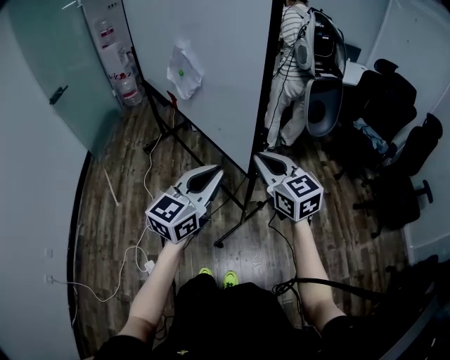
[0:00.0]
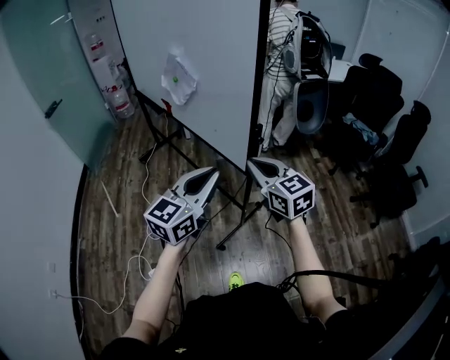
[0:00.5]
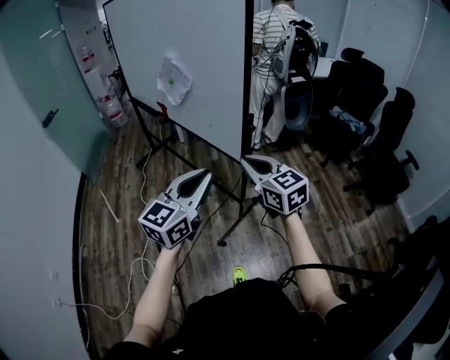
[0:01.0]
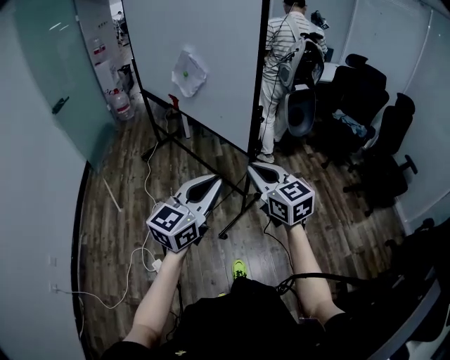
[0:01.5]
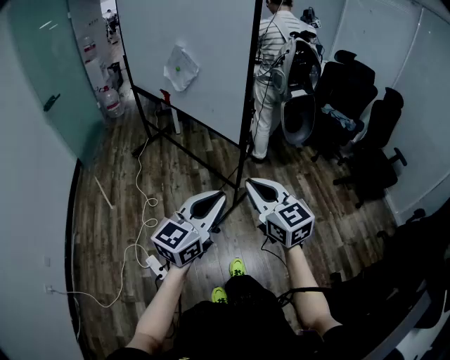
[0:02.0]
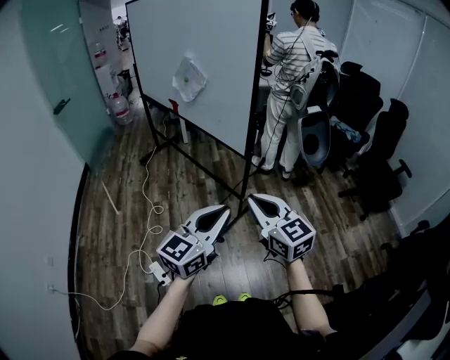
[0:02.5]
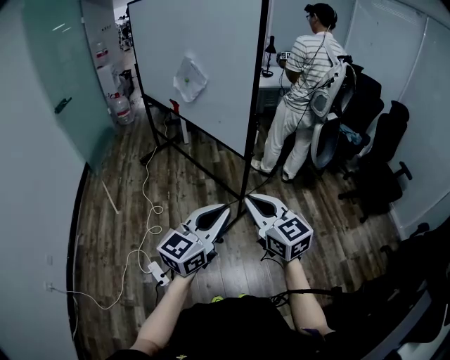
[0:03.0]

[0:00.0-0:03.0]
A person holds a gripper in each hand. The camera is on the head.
0:00.0 to 0:01.5: Both grippers travel together backward, some 20 cm.
0:01.5 to 0:03.0: Both grippers move backward, some 10 cm.

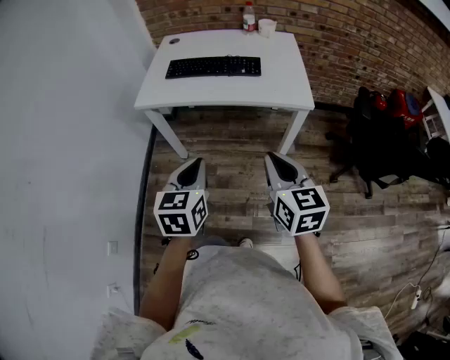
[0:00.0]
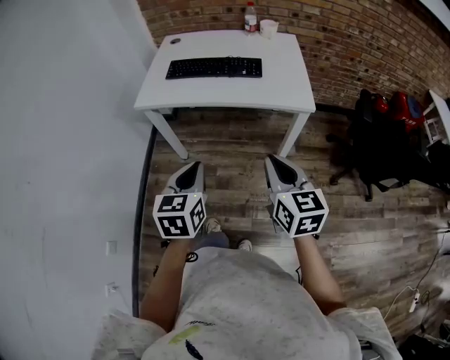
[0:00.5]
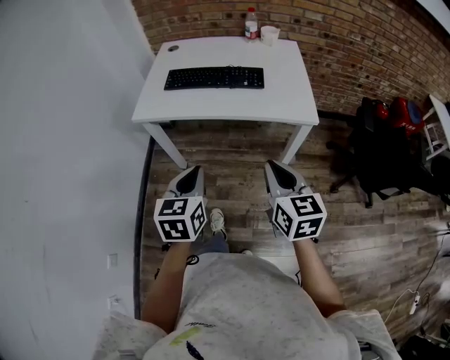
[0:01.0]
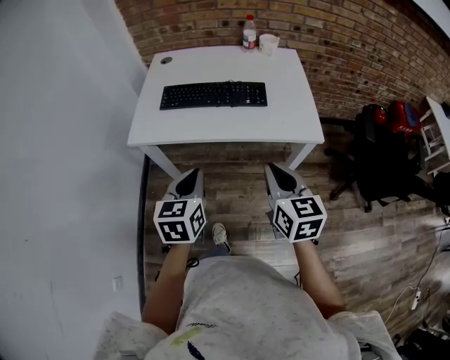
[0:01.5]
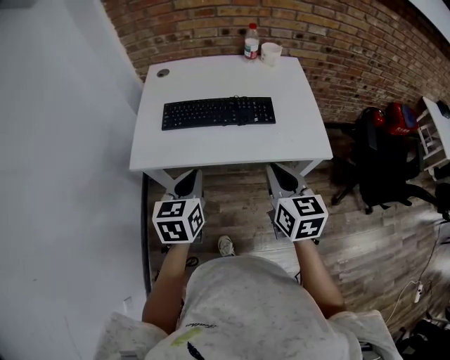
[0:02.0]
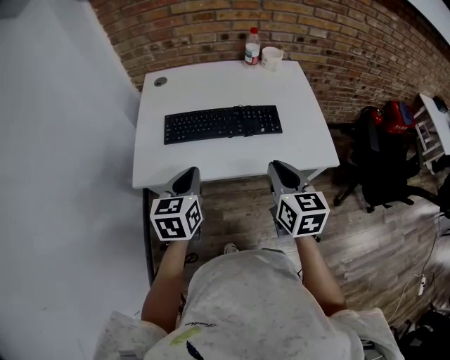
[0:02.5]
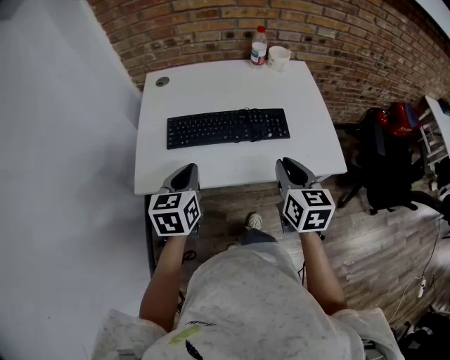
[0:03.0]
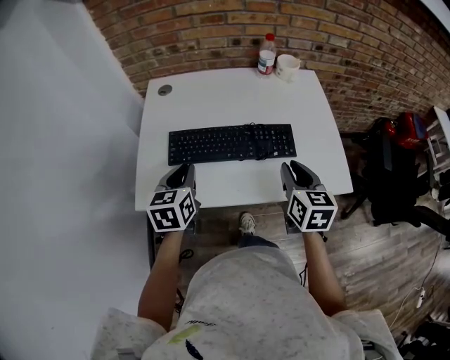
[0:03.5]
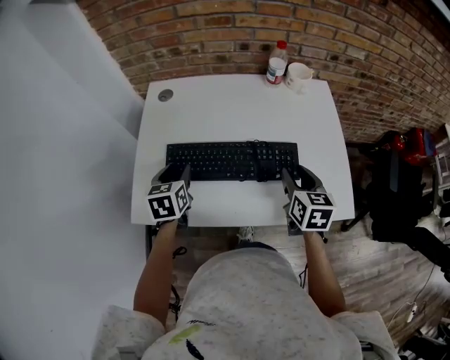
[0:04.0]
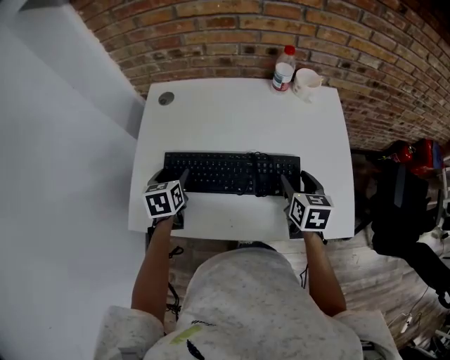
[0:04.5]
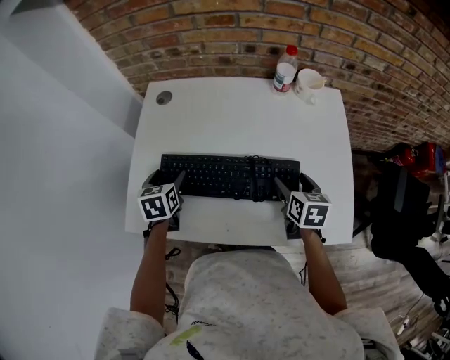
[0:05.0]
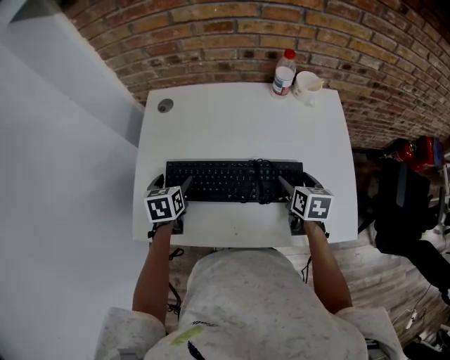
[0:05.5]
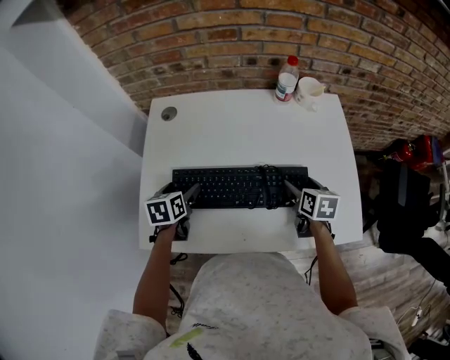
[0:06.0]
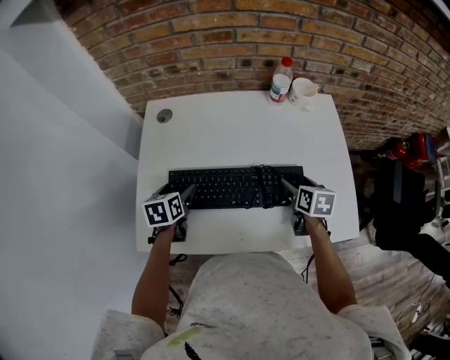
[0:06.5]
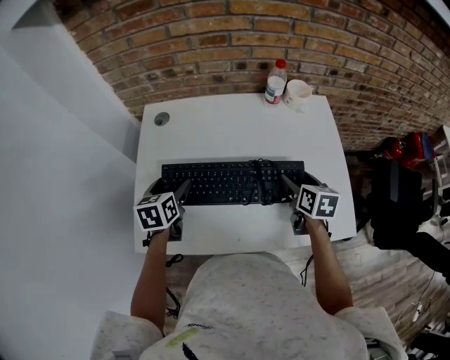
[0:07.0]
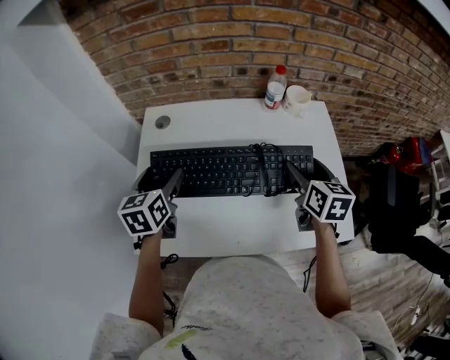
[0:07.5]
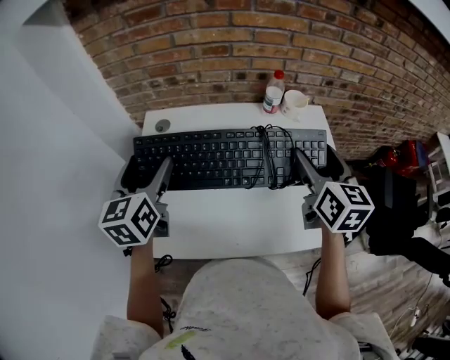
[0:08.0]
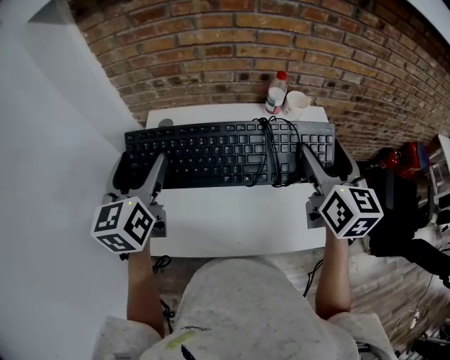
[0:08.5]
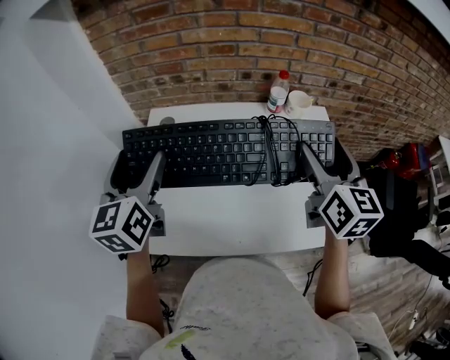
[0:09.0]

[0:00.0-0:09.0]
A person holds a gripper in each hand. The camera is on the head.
0:00.0 to 0:02.0: Both grippers travel together forward, approximately 25 cm.
0:02.0 to 0:04.5: The grippers both shift forward and downward by roughly 35 cm. The right gripper opens its fingers; the left gripper changes its angle by some 20 degrees, and opens its fingers.
0:04.5 to 0:07.0: The grippers make only small movements.
0:07.0 to 0:09.0: Both grippers move upward, roughly 25 cm. The left gripper tips its fingers upward by roughly 30 degrees. The right gripper tilts its fingers approximately 30 degrees upward.

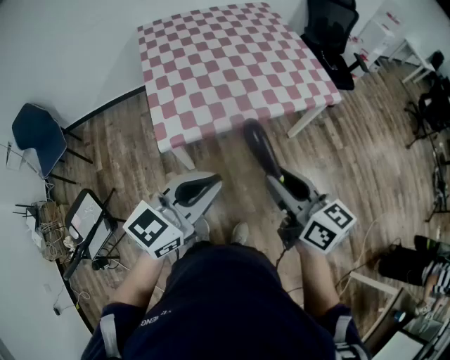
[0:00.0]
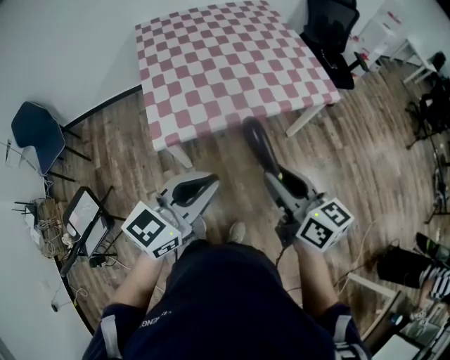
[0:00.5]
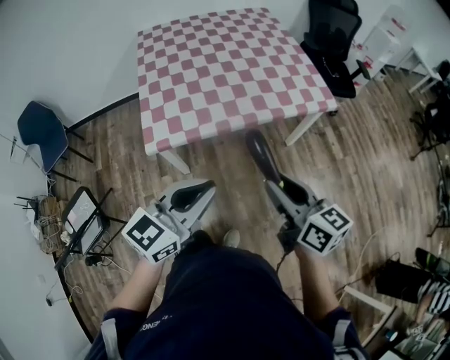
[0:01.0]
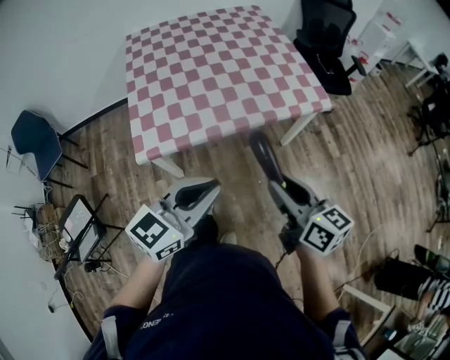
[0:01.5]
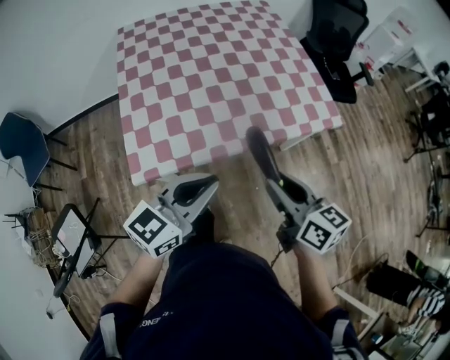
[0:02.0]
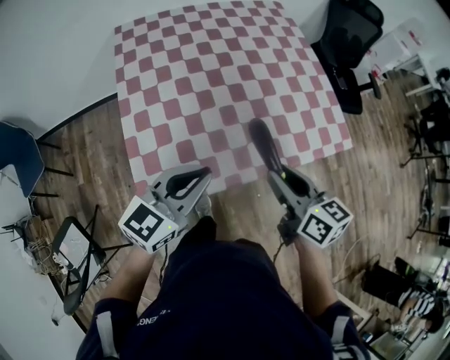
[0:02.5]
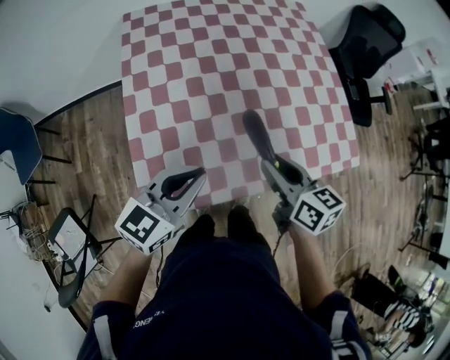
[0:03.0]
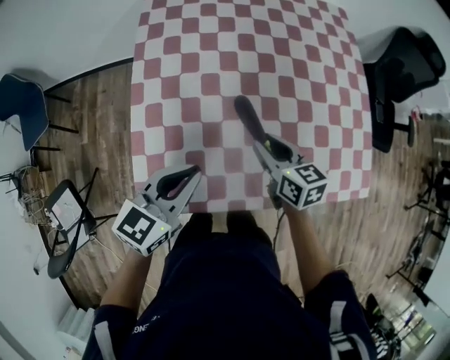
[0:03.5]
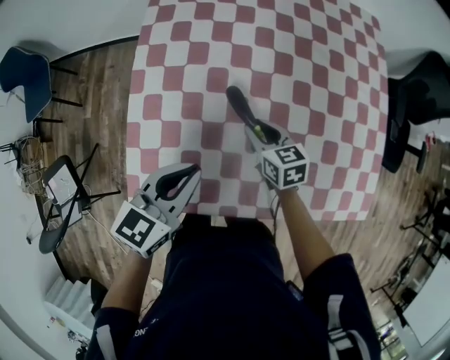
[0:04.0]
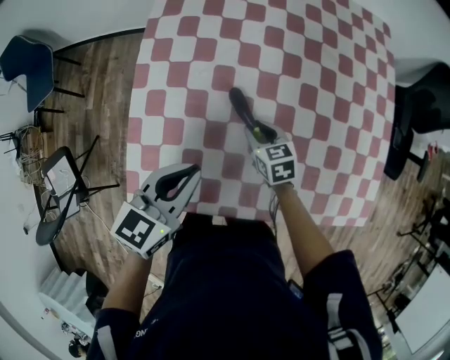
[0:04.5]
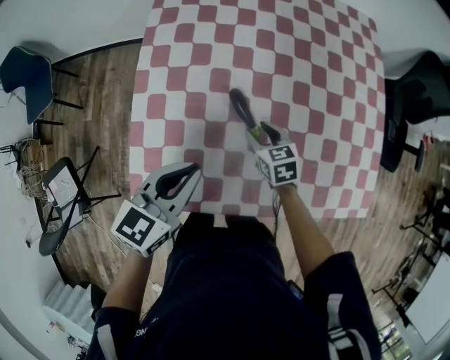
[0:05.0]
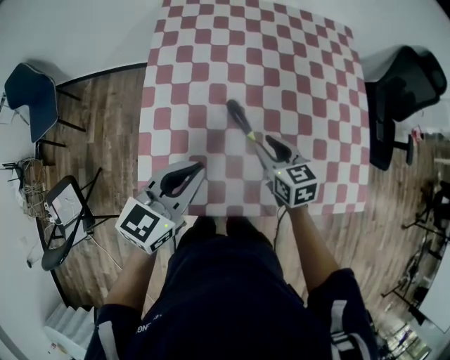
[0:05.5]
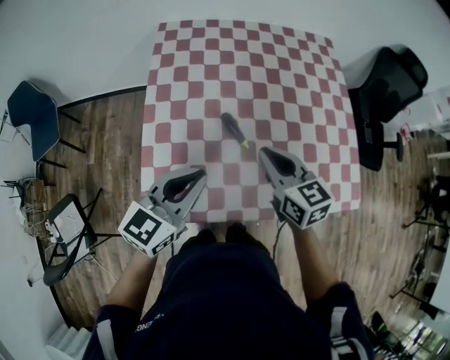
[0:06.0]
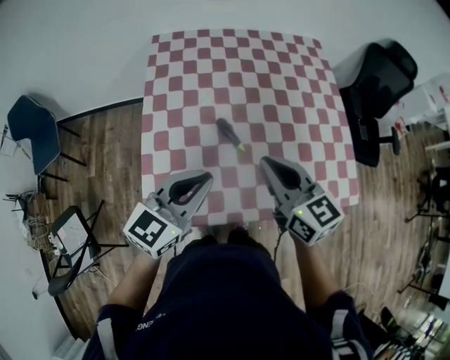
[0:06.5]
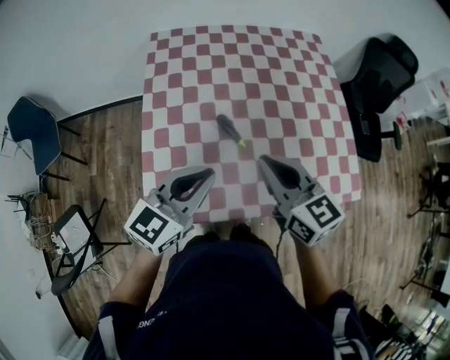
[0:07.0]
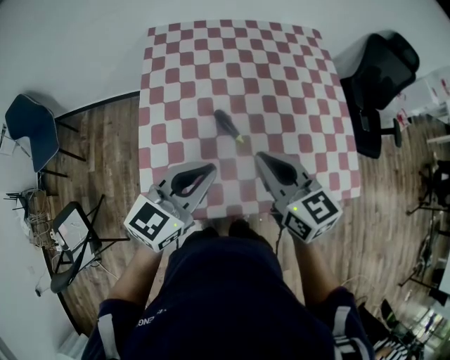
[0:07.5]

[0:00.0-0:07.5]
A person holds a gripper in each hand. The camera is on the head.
0:00.0 to 0:02.0: Both grippers travel together forward, roughly 20 cm.
0:02.0 to 0:04.0: The right gripper moves forward and downward, some 50 cm, and changes its angle by roughly 40 degrees; the left gripper heads forward and to the left, covering approximately 30 cm, and turns by approximately 30 degrees.
0:04.0 to 0:05.5: The right gripper is displaced upward and backward by approximately 10 cm, while the left gripper is displaced upward by some 5 cm.
0:05.5 to 0:07.5: The right gripper moves upward and backward, about 20 cm, and closes. The left gripper heads upward, covering roughly 5 cm.

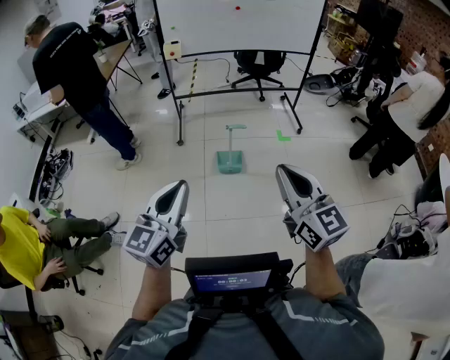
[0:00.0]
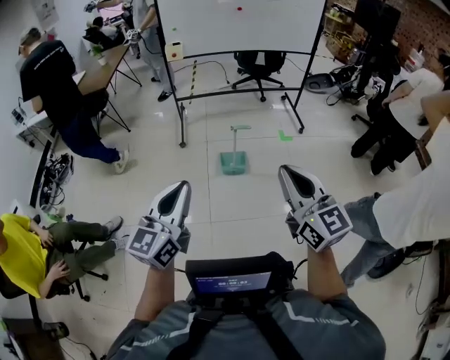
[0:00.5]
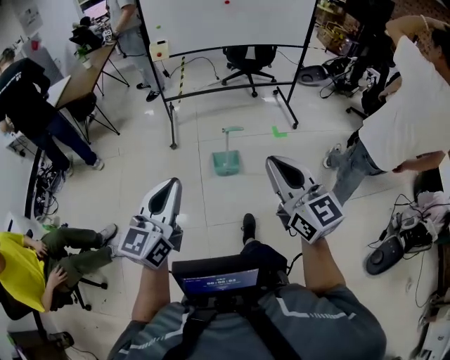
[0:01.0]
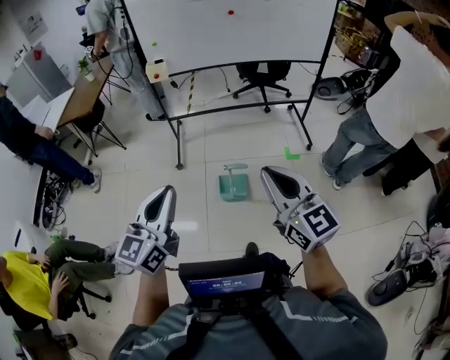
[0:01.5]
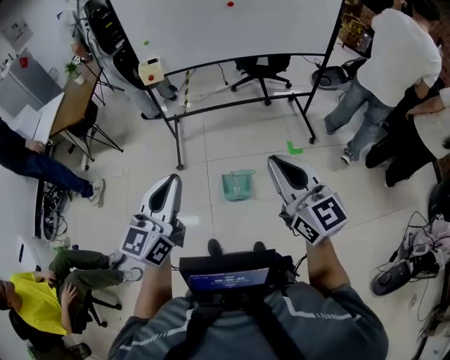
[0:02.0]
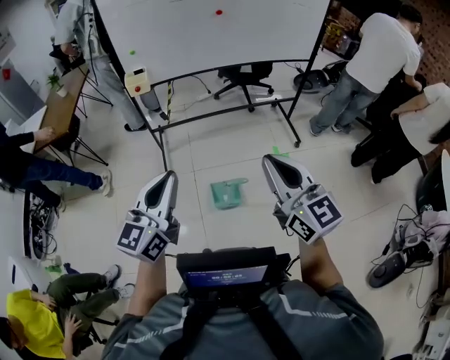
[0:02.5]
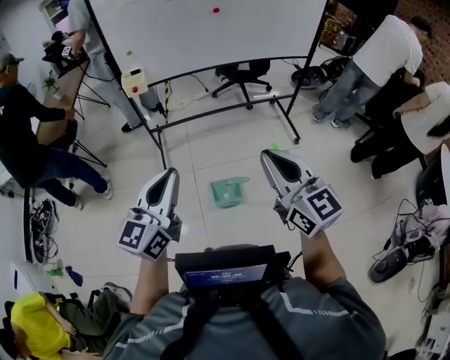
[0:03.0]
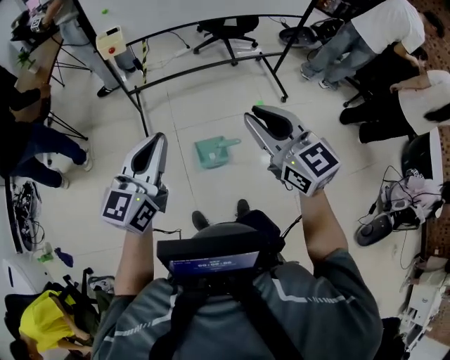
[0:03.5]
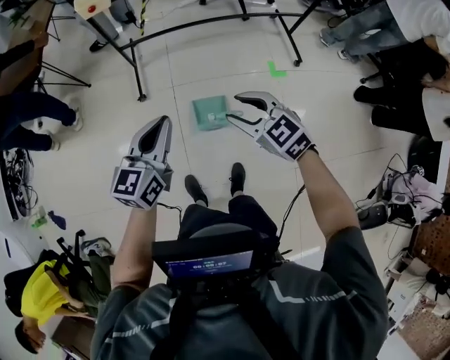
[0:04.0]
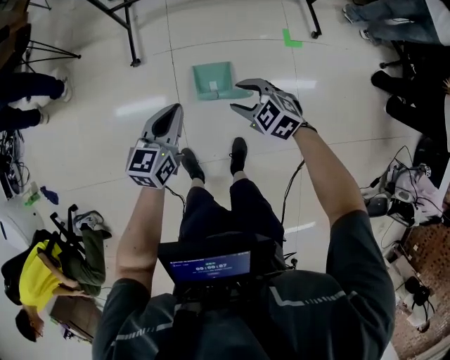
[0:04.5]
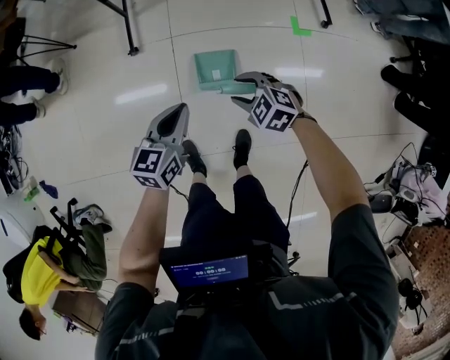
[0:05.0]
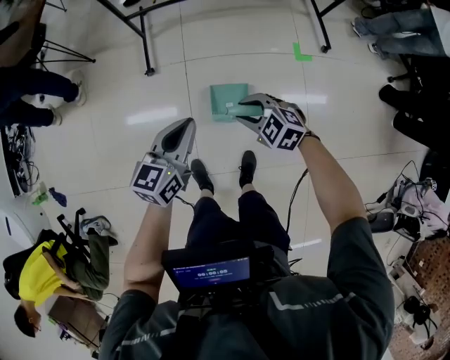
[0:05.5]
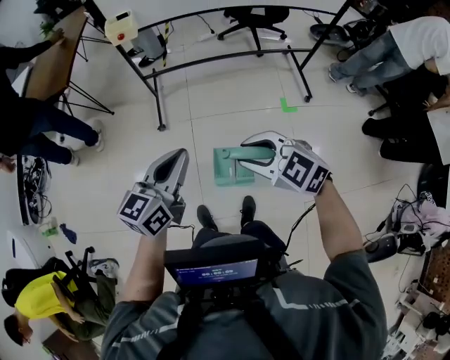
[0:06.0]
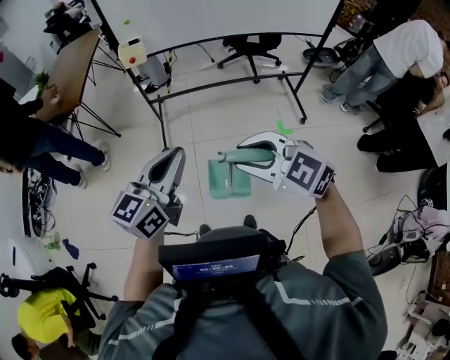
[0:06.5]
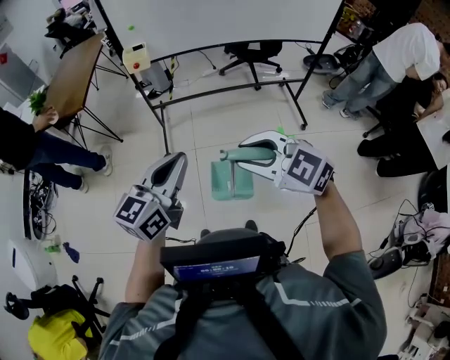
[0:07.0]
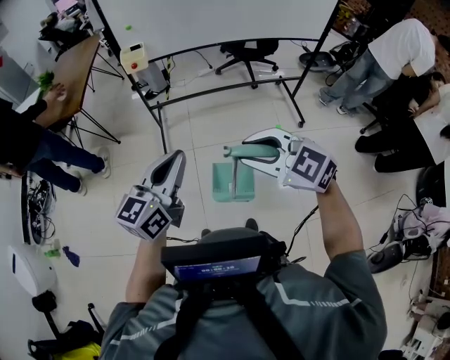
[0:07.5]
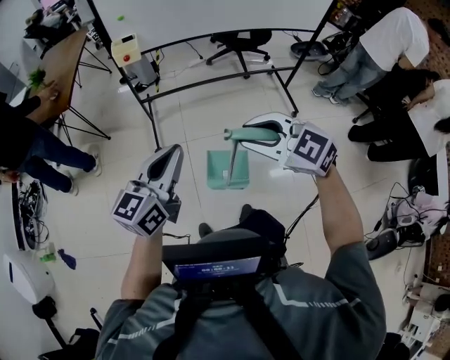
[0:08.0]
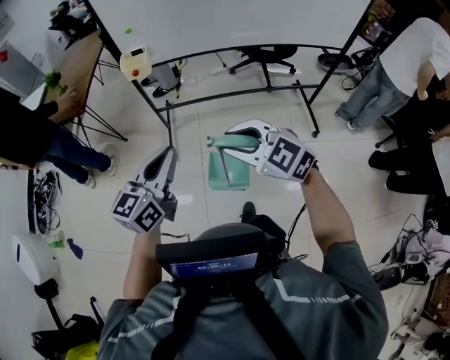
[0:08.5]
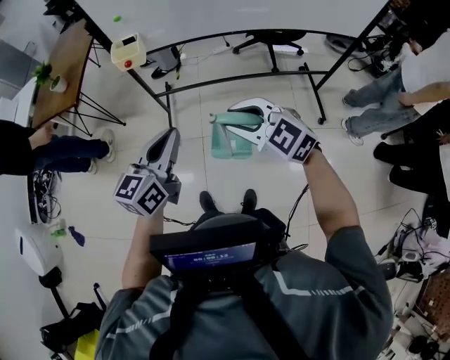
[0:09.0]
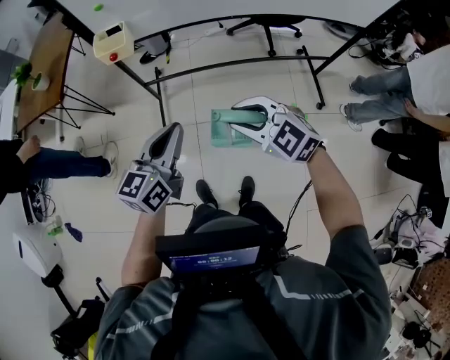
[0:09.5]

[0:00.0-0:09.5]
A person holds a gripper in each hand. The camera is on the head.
0:00.0 to 0:02.0: The pair of grippers is taken forward, about 50 cm.
0:02.0 to 0:04.0: The grippers both shift downward and forward by approximately 35 cm. The right gripper angles its fingers downward, by roughly 40 degrees, and opens up.
0:04.0 to 0:05.5: Both grippers travel together downward, approximately 20 cm. The right gripper rotates about 20 degrees.
0:05.5 to 0:07.5: Both grippers travel together upward, some 40 cm. The right gripper rotates about 20 degrees.
0:07.5 to 0:09.5: Both grippers move forward, about 35 cm.
